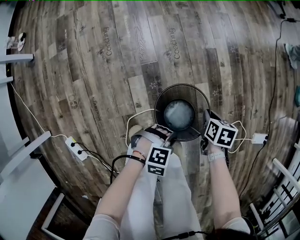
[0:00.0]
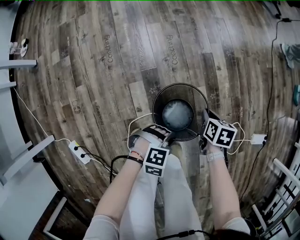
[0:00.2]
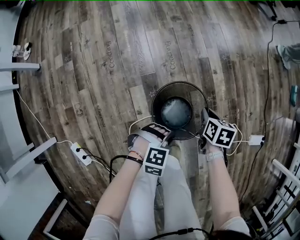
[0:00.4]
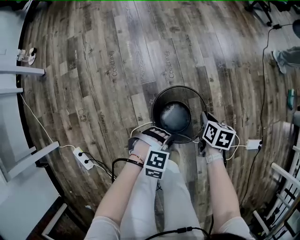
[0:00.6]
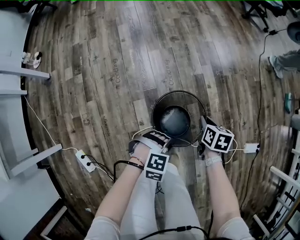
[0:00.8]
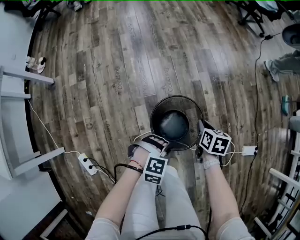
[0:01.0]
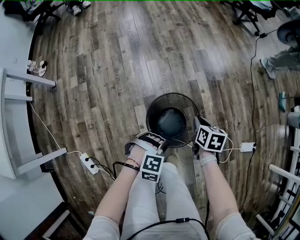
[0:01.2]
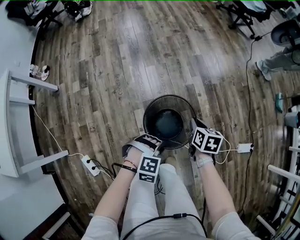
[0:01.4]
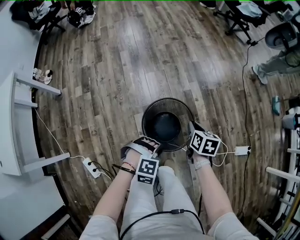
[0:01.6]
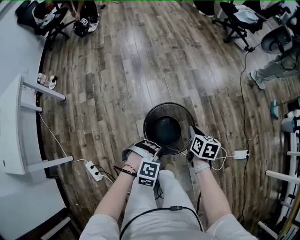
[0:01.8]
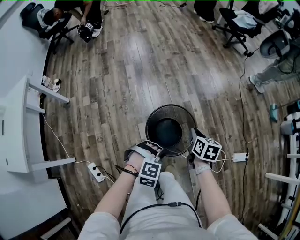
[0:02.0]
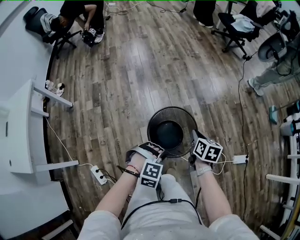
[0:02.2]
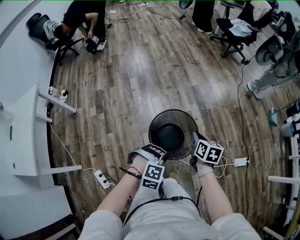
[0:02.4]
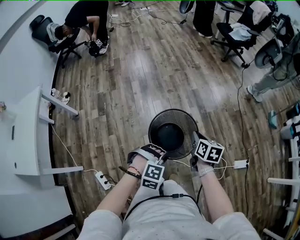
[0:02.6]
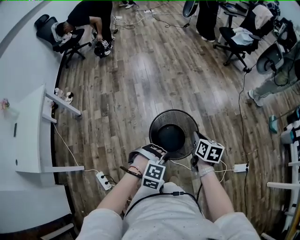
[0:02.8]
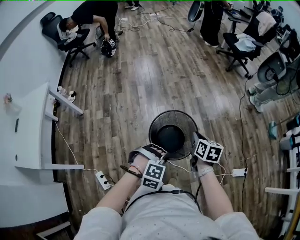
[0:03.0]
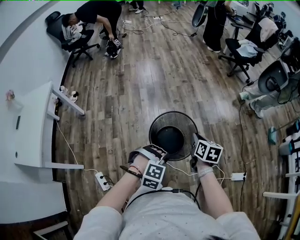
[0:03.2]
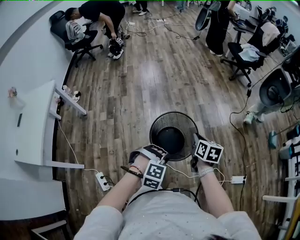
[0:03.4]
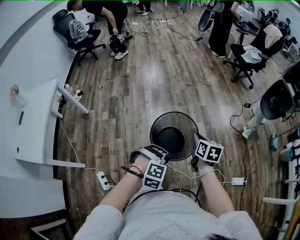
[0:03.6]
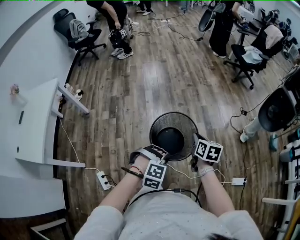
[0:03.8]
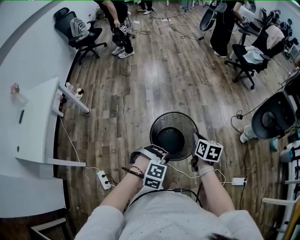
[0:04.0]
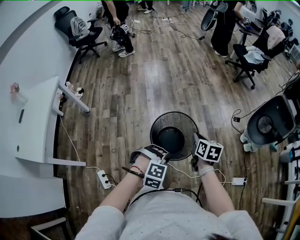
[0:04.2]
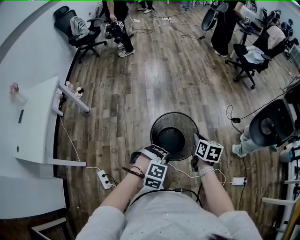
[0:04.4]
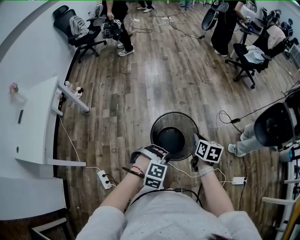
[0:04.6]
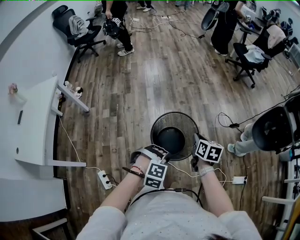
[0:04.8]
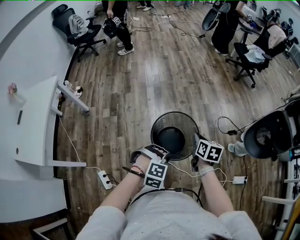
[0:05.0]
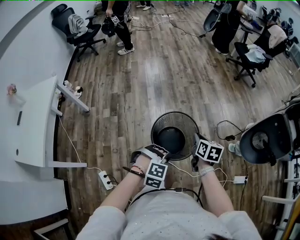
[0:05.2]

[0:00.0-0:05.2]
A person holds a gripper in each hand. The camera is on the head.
0:00.0 to 0:01.8: Both grippers move upward, approximately 35 cm. The left gripper changes its angle by about 20 degrees; the right gripper rotates about 20 degrees.
0:01.8 to 0:03.4: The two grippers go about 20 cm upward.
0:03.4 to 0:05.2: The grippers both shift to the left by roughly 5 cm.

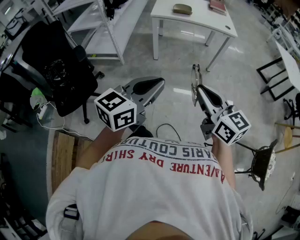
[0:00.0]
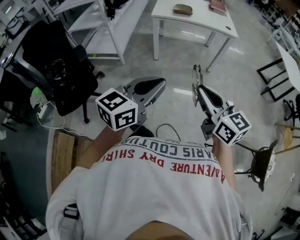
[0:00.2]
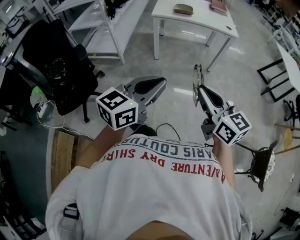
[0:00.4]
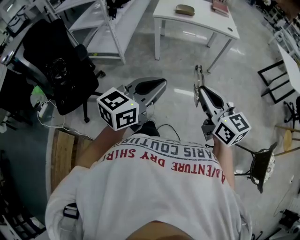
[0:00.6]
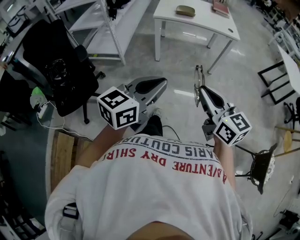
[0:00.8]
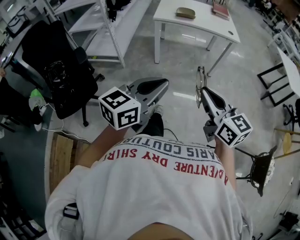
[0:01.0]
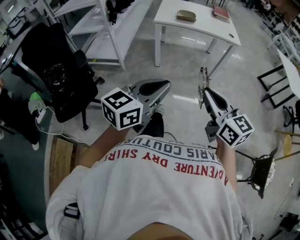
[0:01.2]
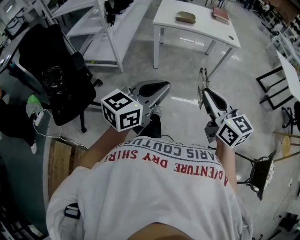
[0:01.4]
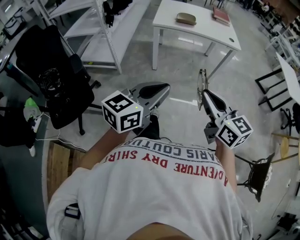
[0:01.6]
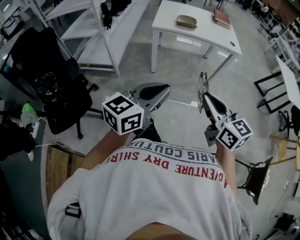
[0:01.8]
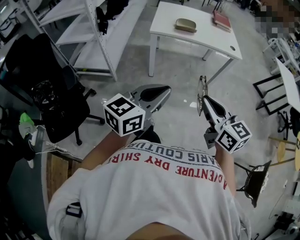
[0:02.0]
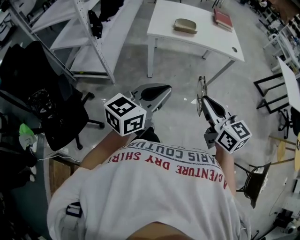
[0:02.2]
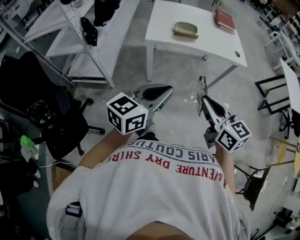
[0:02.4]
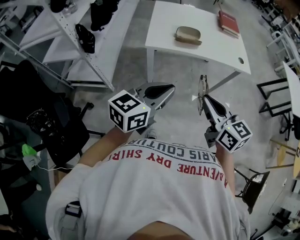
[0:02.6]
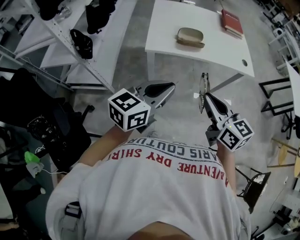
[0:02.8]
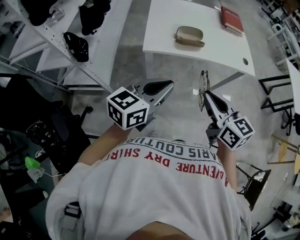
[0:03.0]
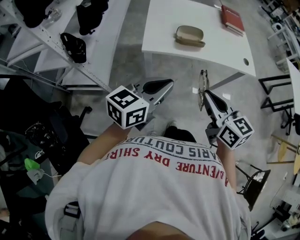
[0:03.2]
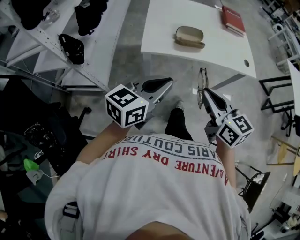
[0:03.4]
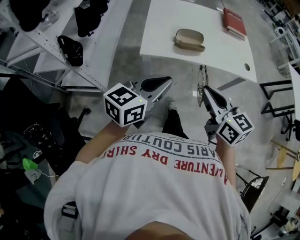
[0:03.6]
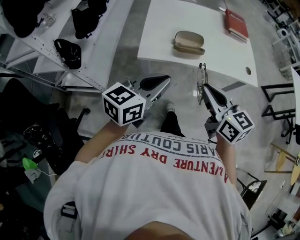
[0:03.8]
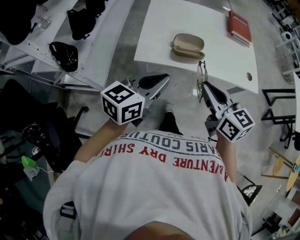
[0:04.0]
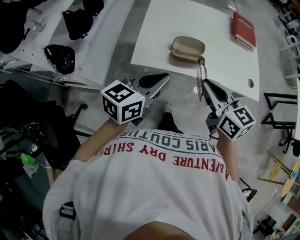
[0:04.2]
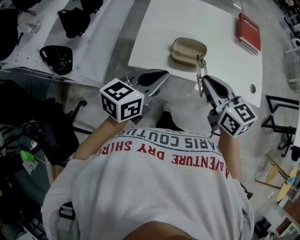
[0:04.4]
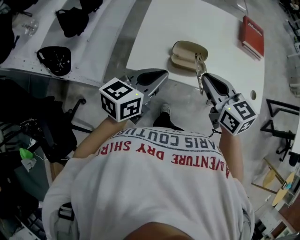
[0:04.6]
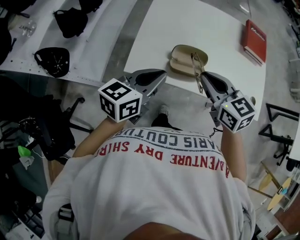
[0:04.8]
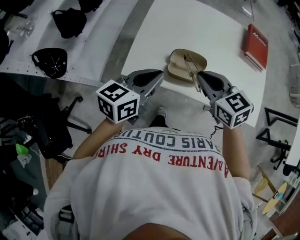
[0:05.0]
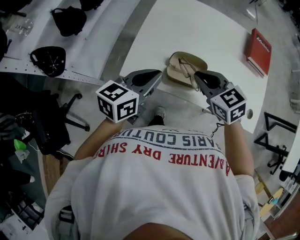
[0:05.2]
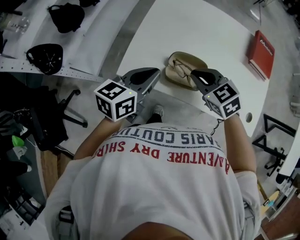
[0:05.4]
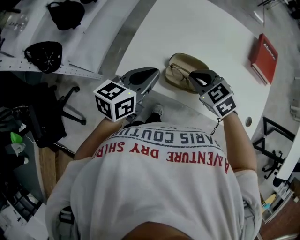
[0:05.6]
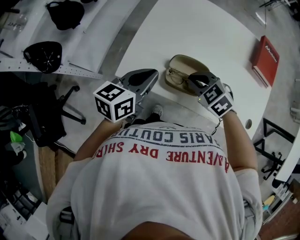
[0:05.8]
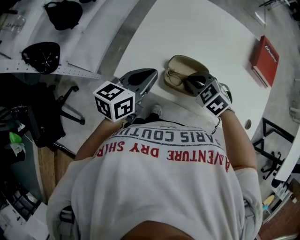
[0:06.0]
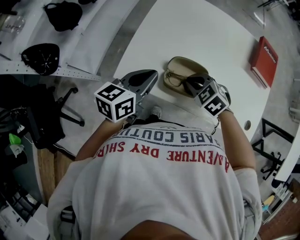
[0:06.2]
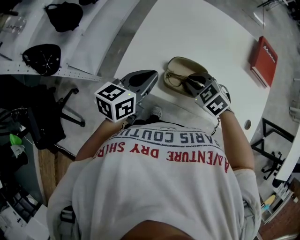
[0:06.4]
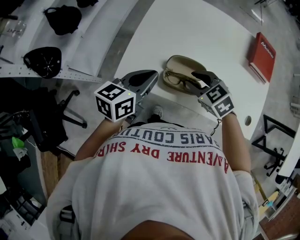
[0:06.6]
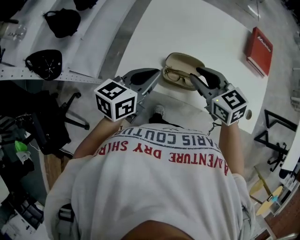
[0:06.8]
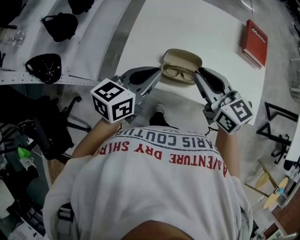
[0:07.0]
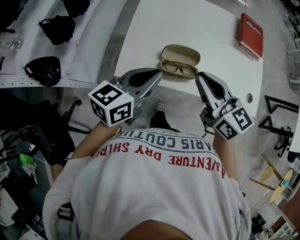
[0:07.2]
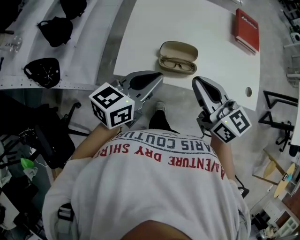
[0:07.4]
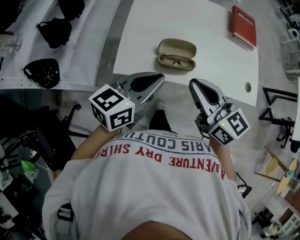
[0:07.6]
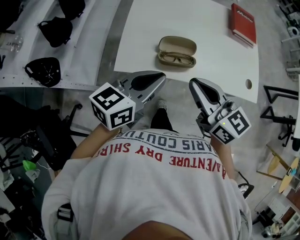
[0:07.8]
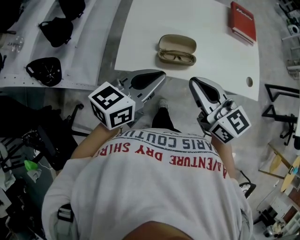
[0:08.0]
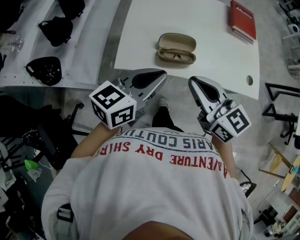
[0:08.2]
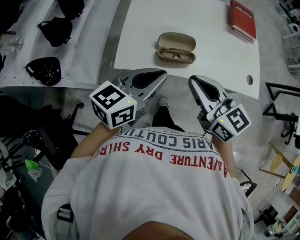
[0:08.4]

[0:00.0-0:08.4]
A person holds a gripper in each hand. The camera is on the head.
0:00.0 to 0:01.4: Both grippers move forward, some 5 cm.
0:01.4 to 0:02.8: The grippers both shift forward by roughly 40 cm.
0:02.8 to 0:04.2: The grippers both shift forward by approximately 20 cm.
0:04.2 to 0:05.6: Both grippers move forward and downward, approximately 20 cm. The left gripper rotates some 20 degrees, while the right gripper tips its fingers downward by approximately 30 degrees.
0:05.6 to 0:07.0: The left gripper shifts by approximately 5 cm, while the right gripper shifts approximately 15 cm upward, and tilts its fingers about 30 degrees upward.
0:07.0 to 0:08.4: The grippers both shift backward by roughly 10 cm.

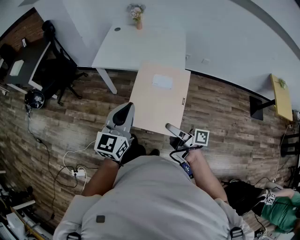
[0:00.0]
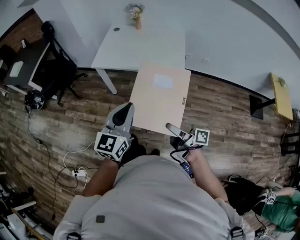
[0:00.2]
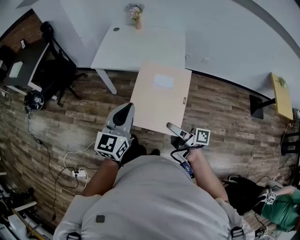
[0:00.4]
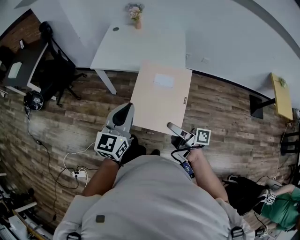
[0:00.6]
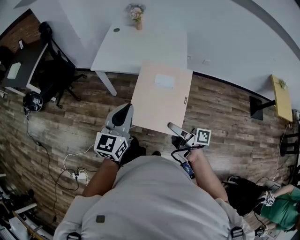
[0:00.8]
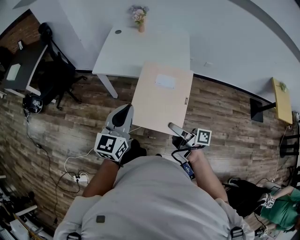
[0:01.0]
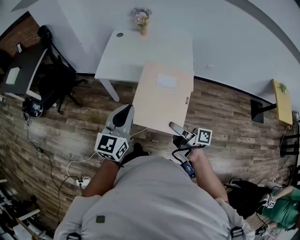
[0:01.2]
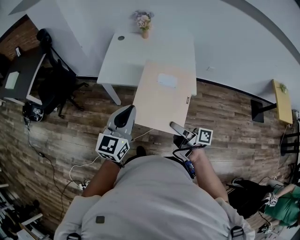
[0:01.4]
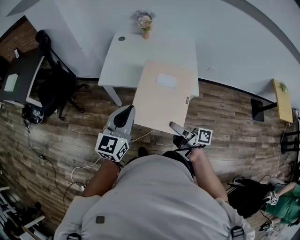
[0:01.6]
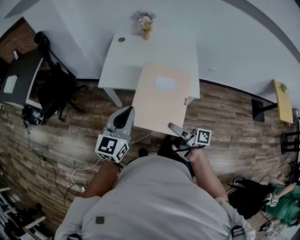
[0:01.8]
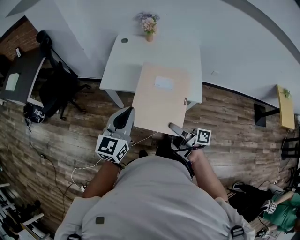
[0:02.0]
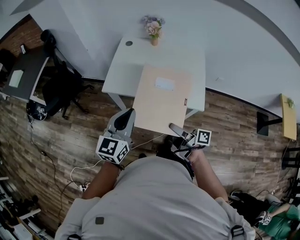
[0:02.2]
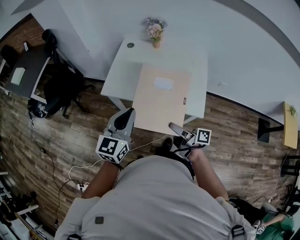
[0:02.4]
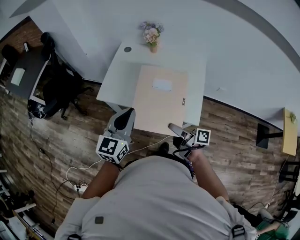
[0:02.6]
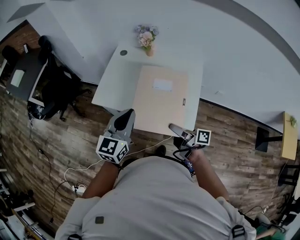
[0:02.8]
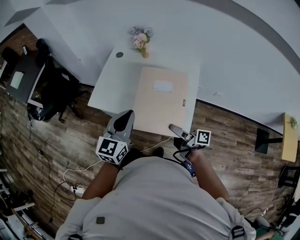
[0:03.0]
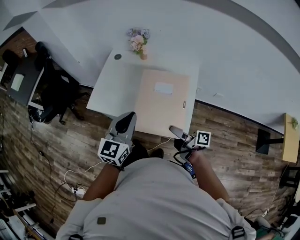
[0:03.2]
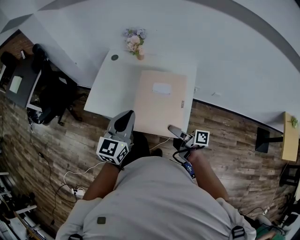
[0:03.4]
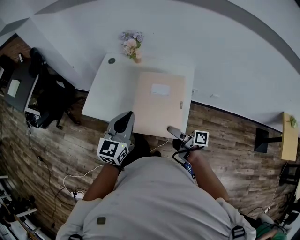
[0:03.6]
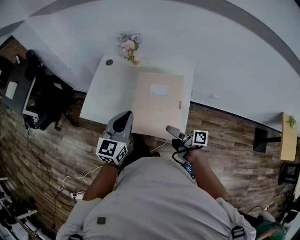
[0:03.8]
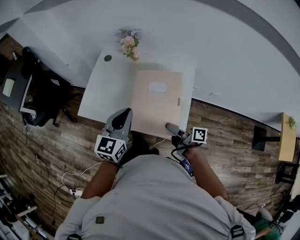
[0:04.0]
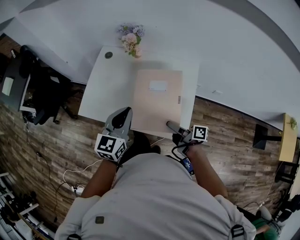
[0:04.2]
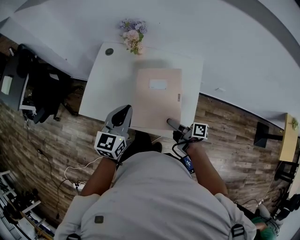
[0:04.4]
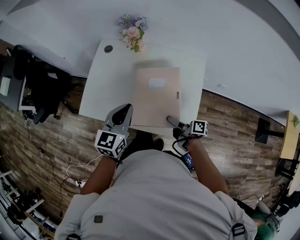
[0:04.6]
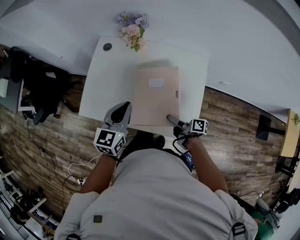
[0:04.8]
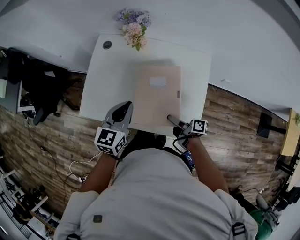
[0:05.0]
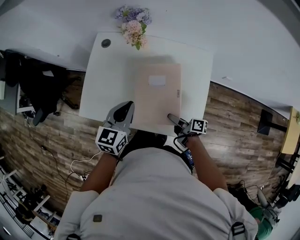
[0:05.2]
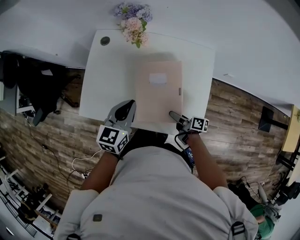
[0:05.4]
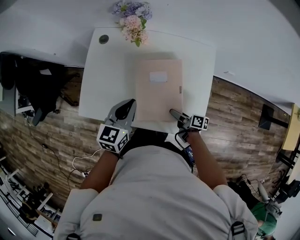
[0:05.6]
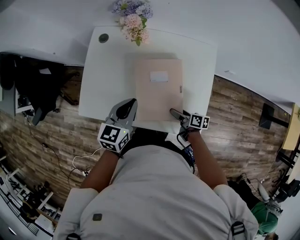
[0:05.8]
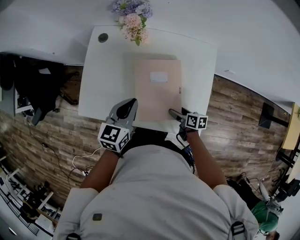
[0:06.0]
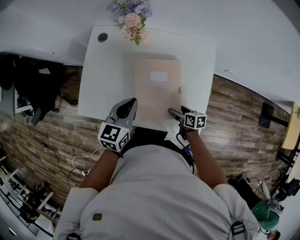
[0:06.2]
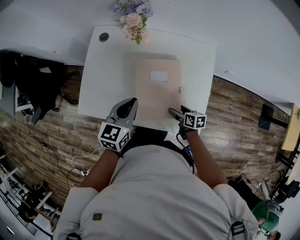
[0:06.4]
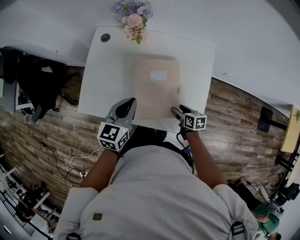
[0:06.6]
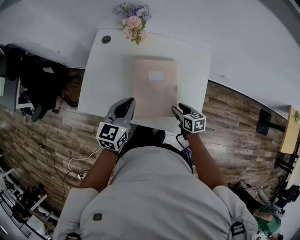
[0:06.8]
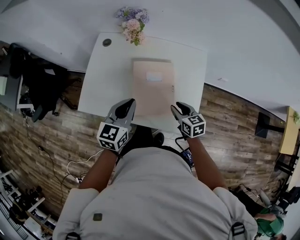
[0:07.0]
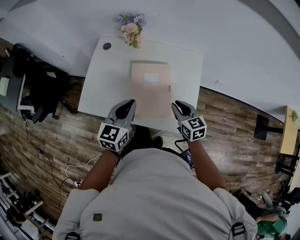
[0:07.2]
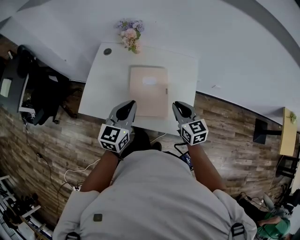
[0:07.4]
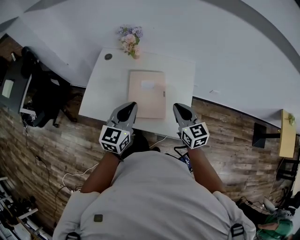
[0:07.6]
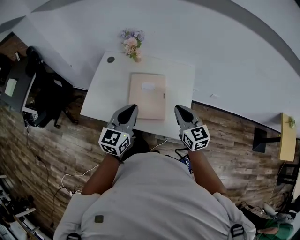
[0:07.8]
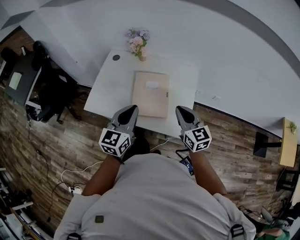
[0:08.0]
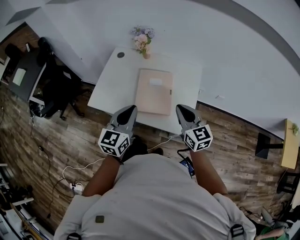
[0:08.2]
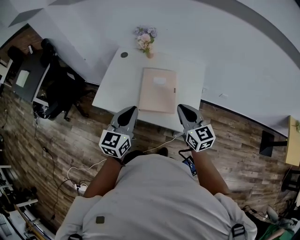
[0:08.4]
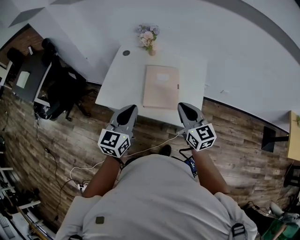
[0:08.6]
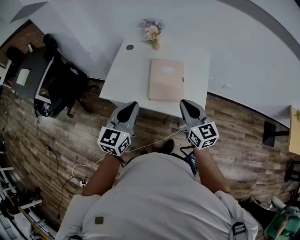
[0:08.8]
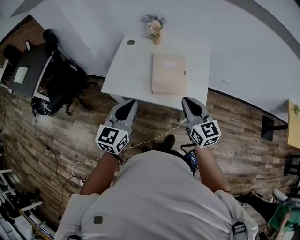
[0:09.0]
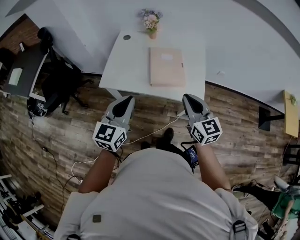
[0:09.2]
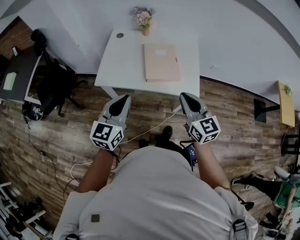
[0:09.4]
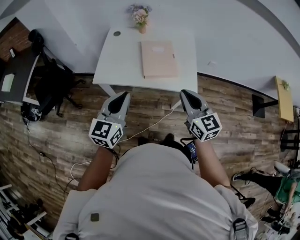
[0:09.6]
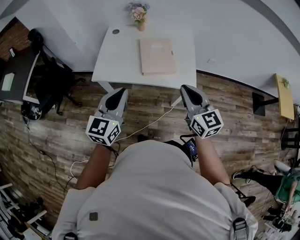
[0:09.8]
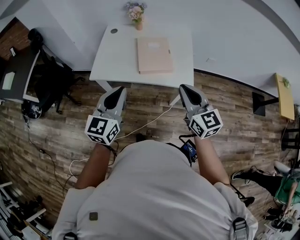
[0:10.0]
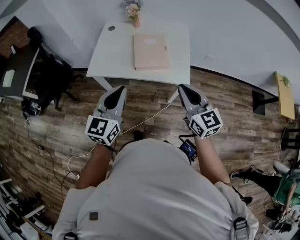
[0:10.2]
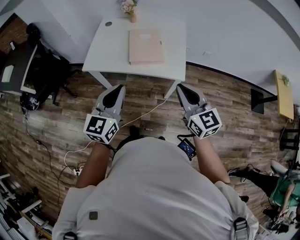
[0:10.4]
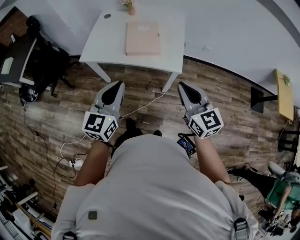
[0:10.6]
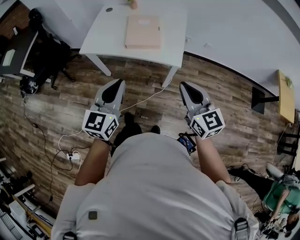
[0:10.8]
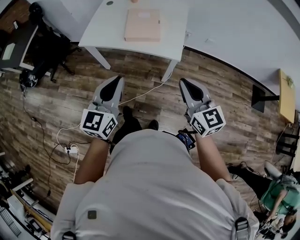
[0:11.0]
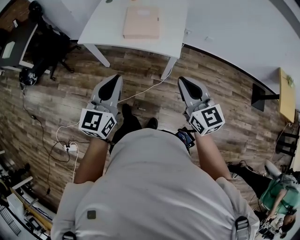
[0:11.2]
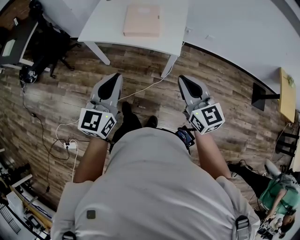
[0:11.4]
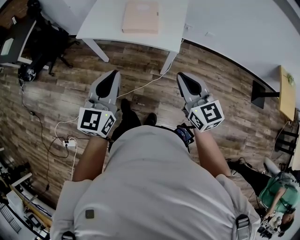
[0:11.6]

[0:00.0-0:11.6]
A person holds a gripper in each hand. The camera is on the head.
0:00.0 to 0:01.4: The left gripper heads forward and to the left, covering approximately 20 cm. Meanwhile the right gripper goes approximately 15 cm forward.
0:01.4 to 0:02.8: The grippers both shift forward and to the right by roughly 25 cm.
0:02.8 to 0:04.4: The right gripper travels forward, downward and to the right by some 20 cm. Meanwhile the left gripper shifts about 20 cm forward, to the right and downward.
0:04.4 to 0:05.8: The left gripper goes some 15 cm downward and forward, while the right gripper travels downward by about 15 cm, and turns by some 20 degrees.
0:05.8 to 0:07.2: The left gripper travels backward and upward by some 10 cm. The right gripper moves upward, about 20 cm, rolls counterclockwise, seen from behind, by approximately 50 degrees, and closes.
0:07.2 to 0:08.8: The right gripper shifts approximately 25 cm upward, backward and to the left, and changes its angle by some 20 degrees, while the left gripper shifts about 20 cm backward, upward and to the left.
0:08.8 to 0:10.2: Both grippers travel together backward, about 15 cm.
0:10.2 to 0:11.6: Both grippers travel together backward and to the right, about 15 cm.
